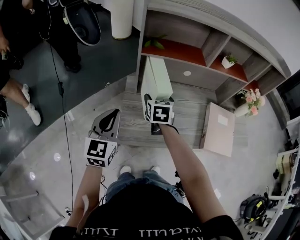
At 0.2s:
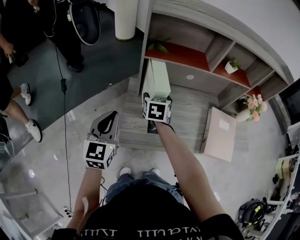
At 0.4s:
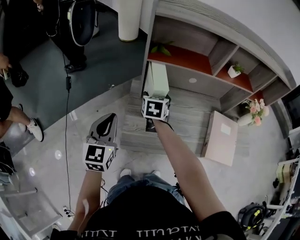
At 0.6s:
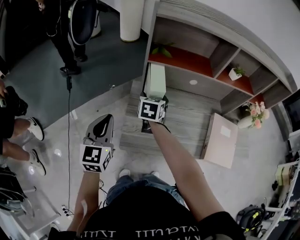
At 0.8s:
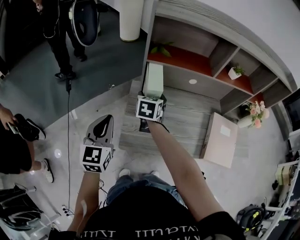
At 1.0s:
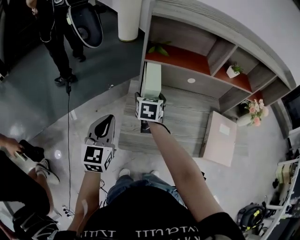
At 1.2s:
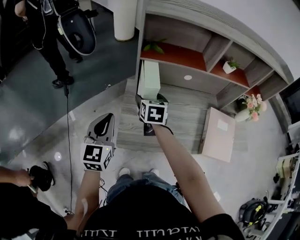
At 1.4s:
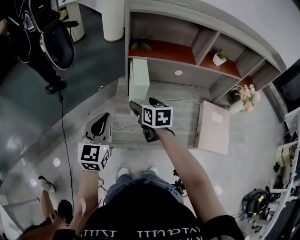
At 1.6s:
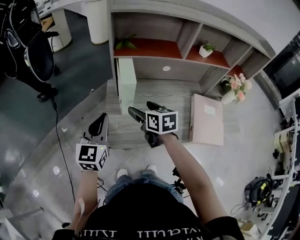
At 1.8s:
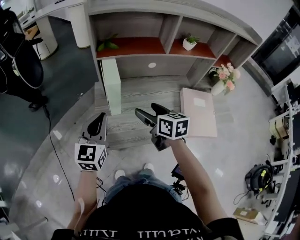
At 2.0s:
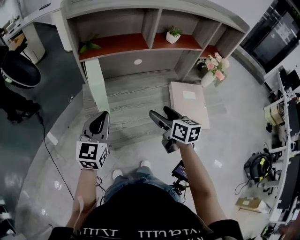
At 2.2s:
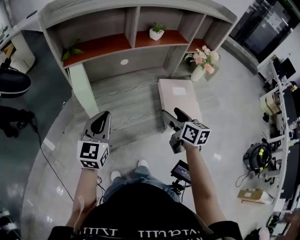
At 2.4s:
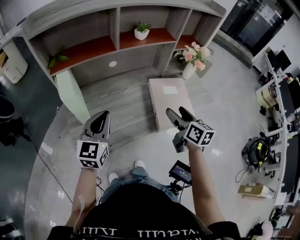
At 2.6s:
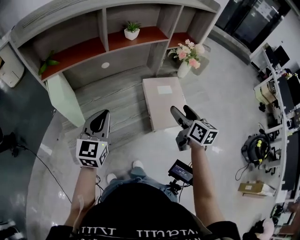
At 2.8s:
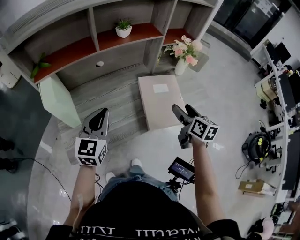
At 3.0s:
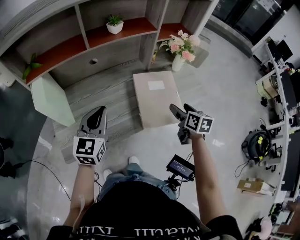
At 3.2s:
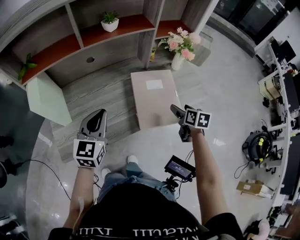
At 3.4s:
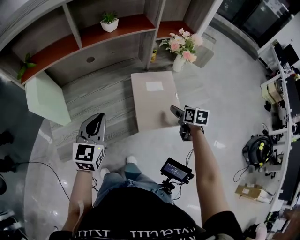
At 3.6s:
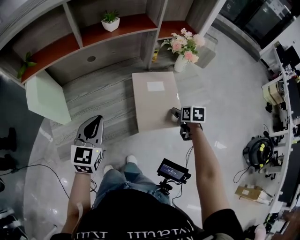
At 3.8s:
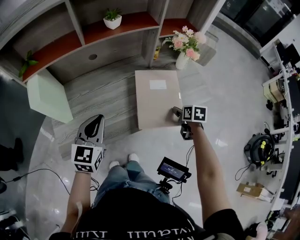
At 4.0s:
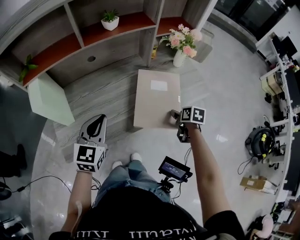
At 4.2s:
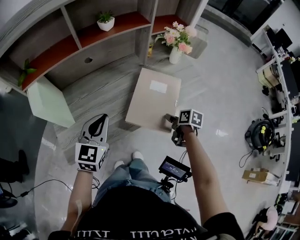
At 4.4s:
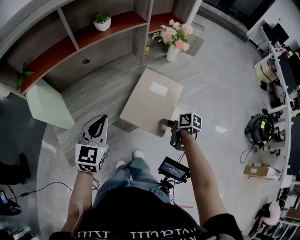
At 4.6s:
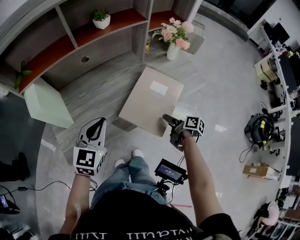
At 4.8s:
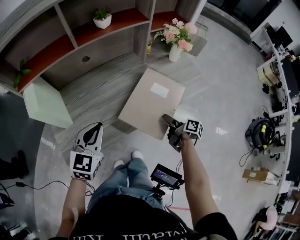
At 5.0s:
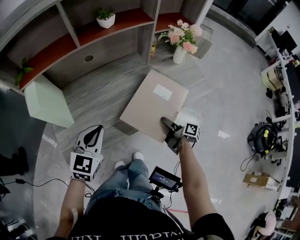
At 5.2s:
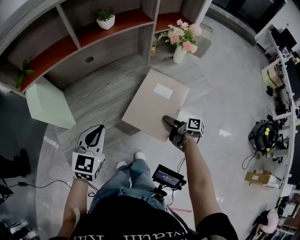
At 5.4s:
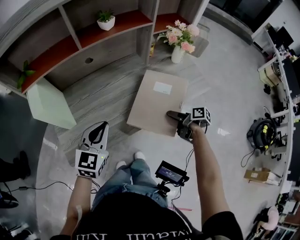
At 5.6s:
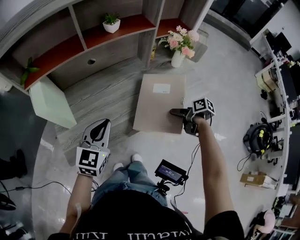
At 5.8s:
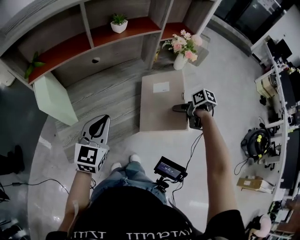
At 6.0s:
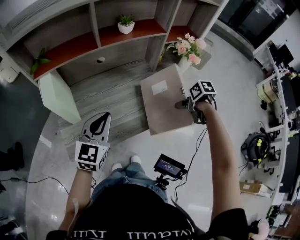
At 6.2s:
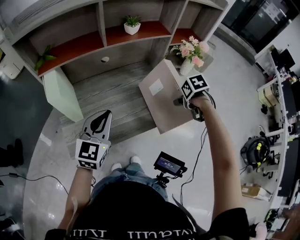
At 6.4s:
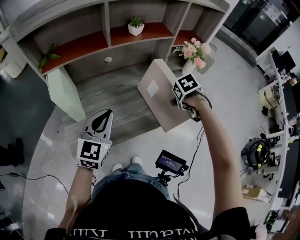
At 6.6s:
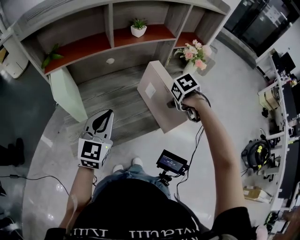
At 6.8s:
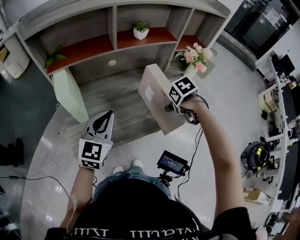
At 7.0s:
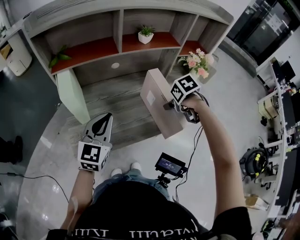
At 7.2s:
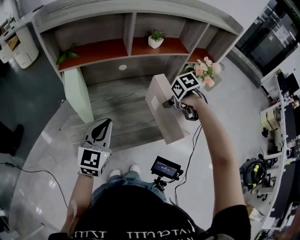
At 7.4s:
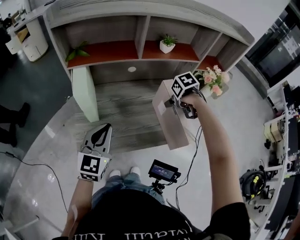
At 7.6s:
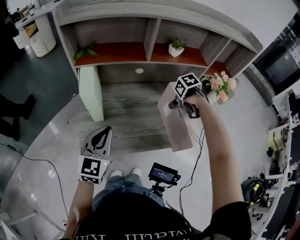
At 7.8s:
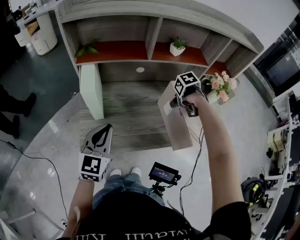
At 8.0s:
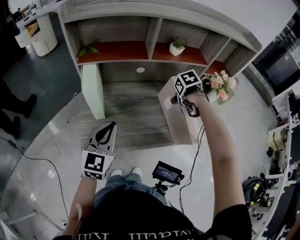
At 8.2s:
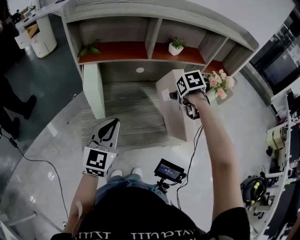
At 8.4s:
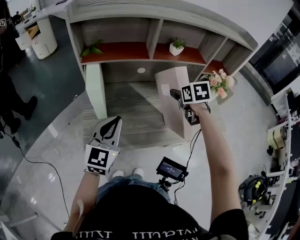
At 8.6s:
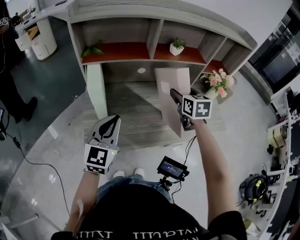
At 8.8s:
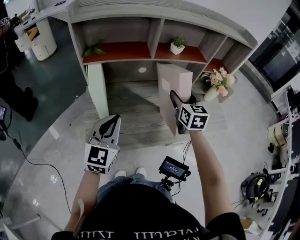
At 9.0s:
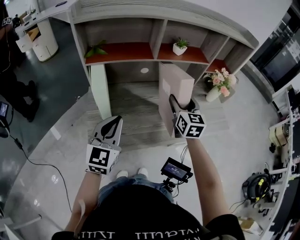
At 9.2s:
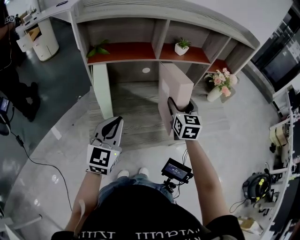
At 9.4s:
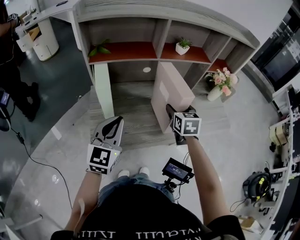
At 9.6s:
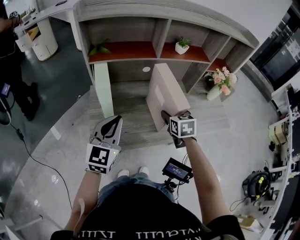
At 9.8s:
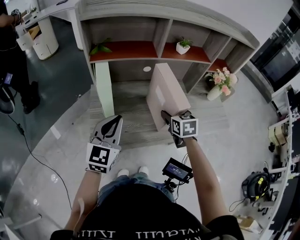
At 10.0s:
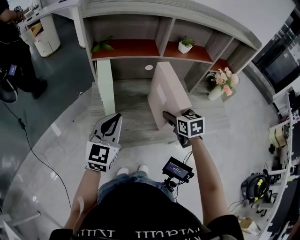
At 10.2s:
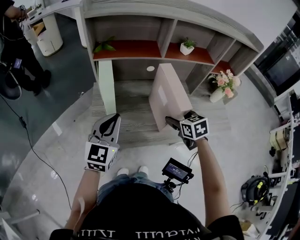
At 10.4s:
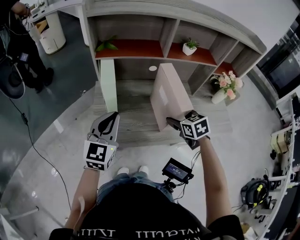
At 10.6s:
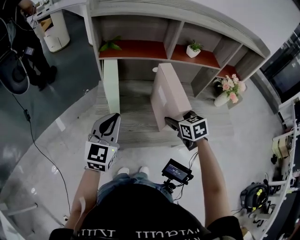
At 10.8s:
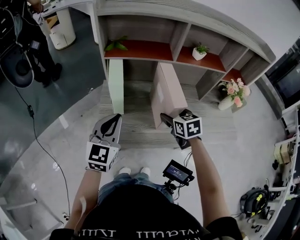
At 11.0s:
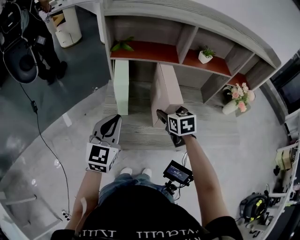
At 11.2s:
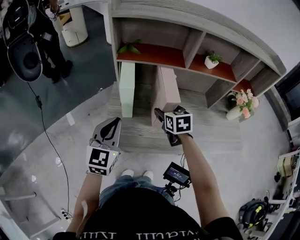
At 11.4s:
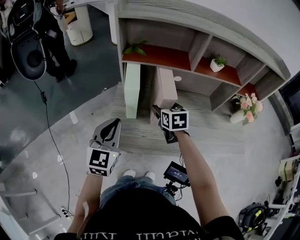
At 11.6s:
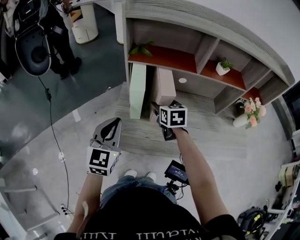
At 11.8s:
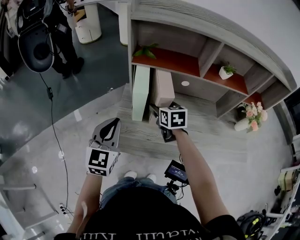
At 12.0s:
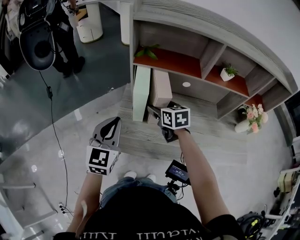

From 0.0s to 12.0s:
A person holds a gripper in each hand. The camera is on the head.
From 0.0s to 1.6s: The right gripper moves backward, approximately 5 cm, and rotates roughly 20 degrees.
From 1.6s to 3.0s: The left gripper moves about 30 cm, and rotates approximately 20 degrees; the right gripper changes place by approximately 50 cm, and changes its angle by some 40 degrees.
From 3.0s to 4.4s: The right gripper moves downward and backward, about 15 cm, rotates some 40 degrees, and closes its fingers.
From 4.4s to 6.0s: The right gripper travels upward and forward by approximately 15 cm, and rotates roughly 40 degrees.
From 6.0s to 7.6s: The right gripper shifts by some 20 cm, and swivels roughly 40 degrees; the left gripper moves about 10 cm.
From 7.6s to 9.0s: The right gripper moves upward, roughly 10 cm, and tilts its fingers about 70 degrees upward.
From 9.0s to 10.4s: The right gripper moves downward and backward, about 10 cm, and tips its fingers downward by approximately 30 degrees.
From 10.4s to 12.0s: The right gripper travels to the left and forward by some 25 cm, while the left gripper heads to the left, covering some 10 cm.

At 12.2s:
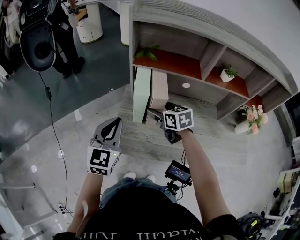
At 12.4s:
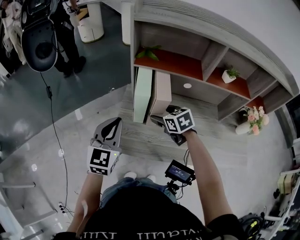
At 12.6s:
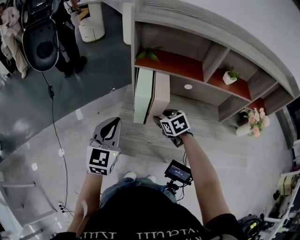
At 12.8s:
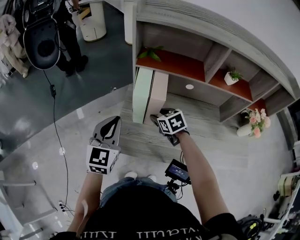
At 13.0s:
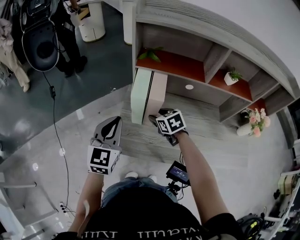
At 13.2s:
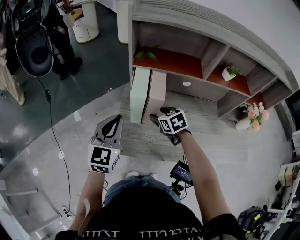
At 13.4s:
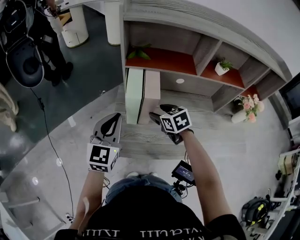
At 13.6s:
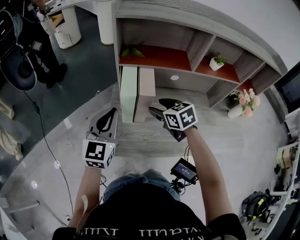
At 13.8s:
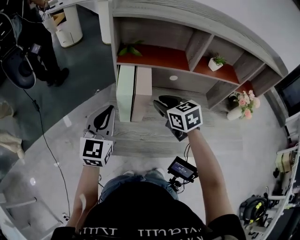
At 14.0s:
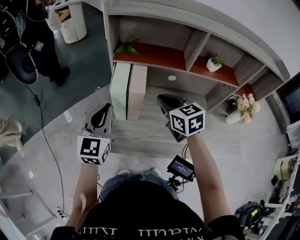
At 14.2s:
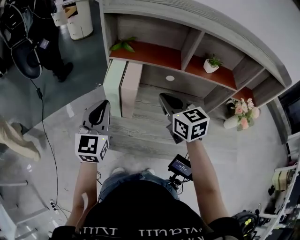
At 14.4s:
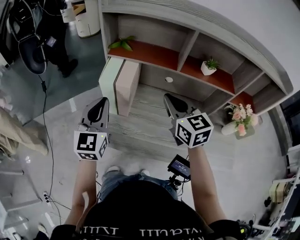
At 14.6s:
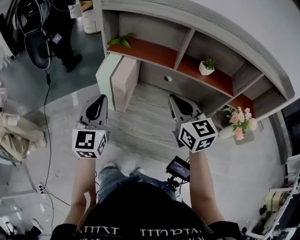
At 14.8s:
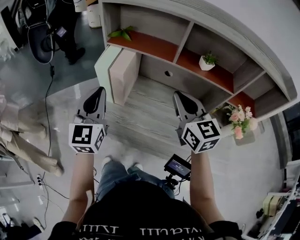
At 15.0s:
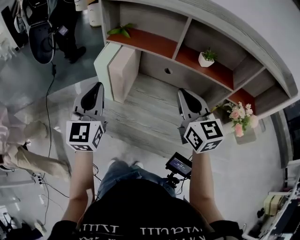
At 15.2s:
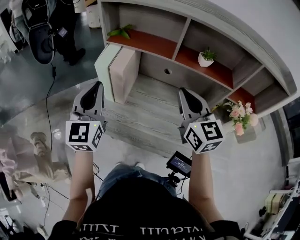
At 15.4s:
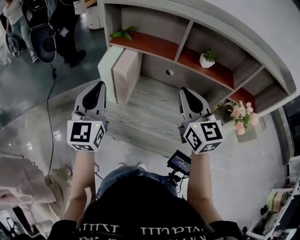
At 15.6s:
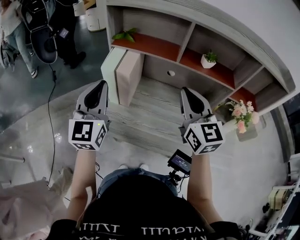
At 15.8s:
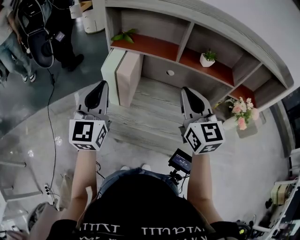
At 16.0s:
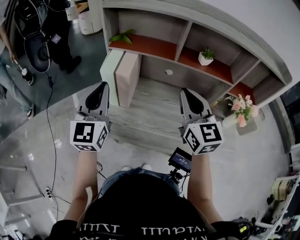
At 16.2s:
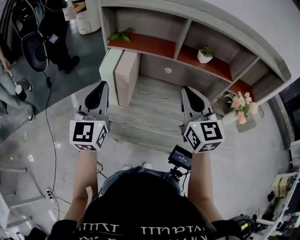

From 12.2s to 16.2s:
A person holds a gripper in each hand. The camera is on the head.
From 13.6s to 14.8s: The right gripper goes roughly 25 cm to the right, upward and backward, tilts its fingers some 30 degrees upward, and closes its fingers. The left gripper is displaced to the right and backward by approximately 10 cm, and rotates roughly 30 degrees.
From 14.8s to 16.2s: The grippers move only a little.

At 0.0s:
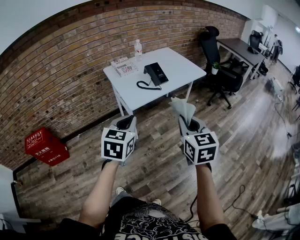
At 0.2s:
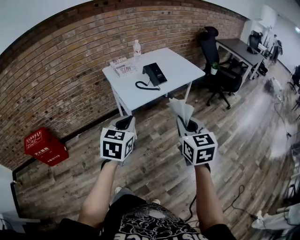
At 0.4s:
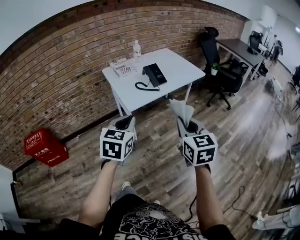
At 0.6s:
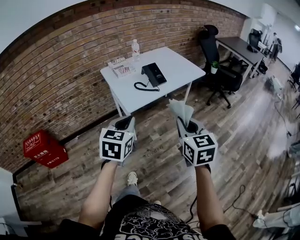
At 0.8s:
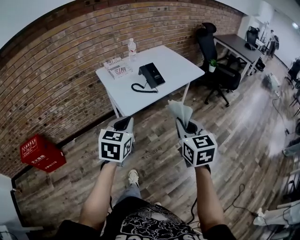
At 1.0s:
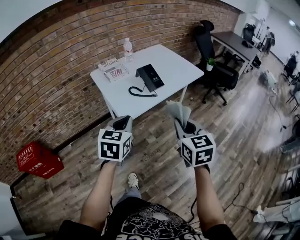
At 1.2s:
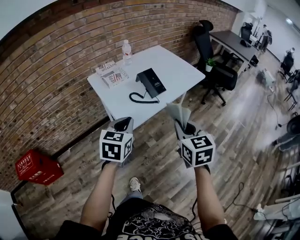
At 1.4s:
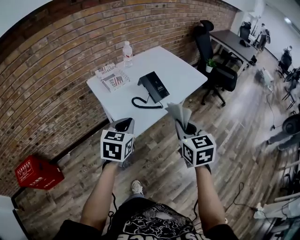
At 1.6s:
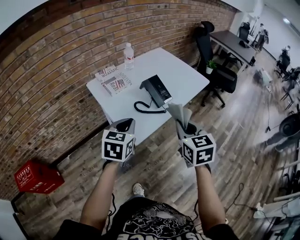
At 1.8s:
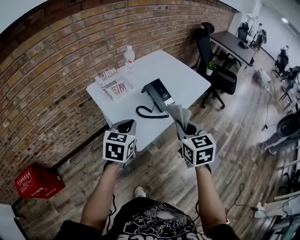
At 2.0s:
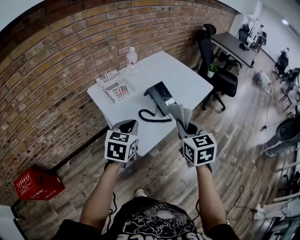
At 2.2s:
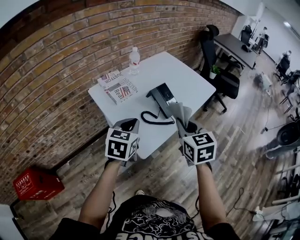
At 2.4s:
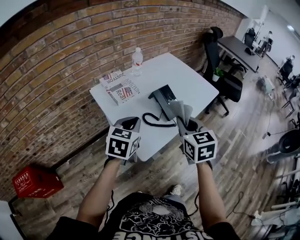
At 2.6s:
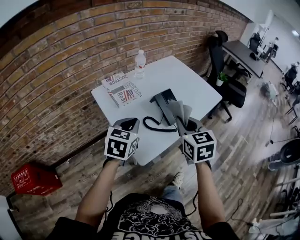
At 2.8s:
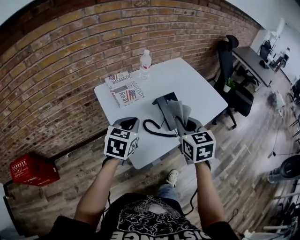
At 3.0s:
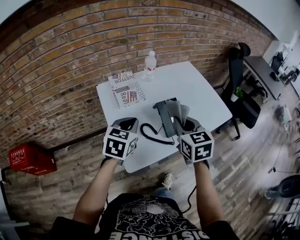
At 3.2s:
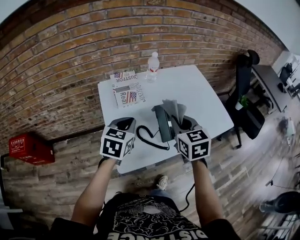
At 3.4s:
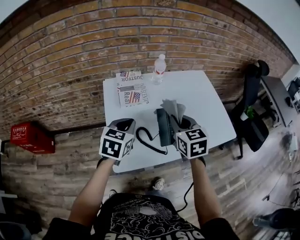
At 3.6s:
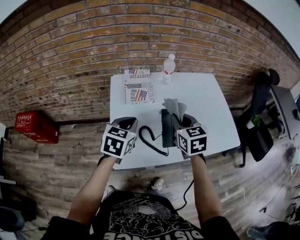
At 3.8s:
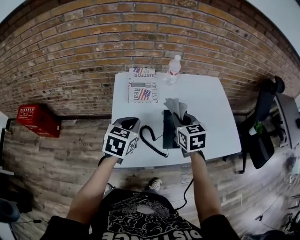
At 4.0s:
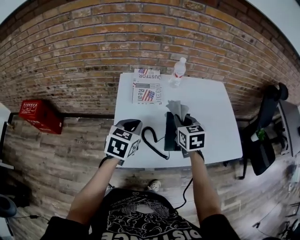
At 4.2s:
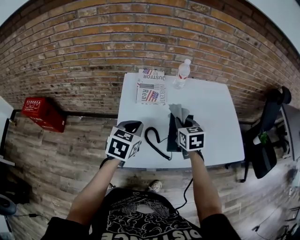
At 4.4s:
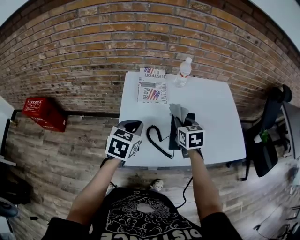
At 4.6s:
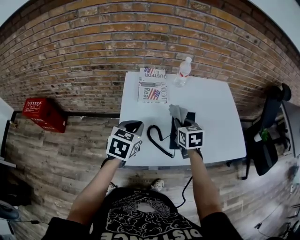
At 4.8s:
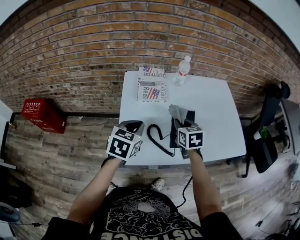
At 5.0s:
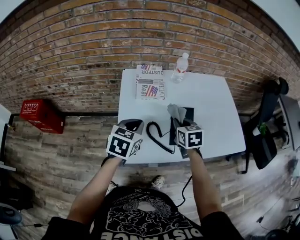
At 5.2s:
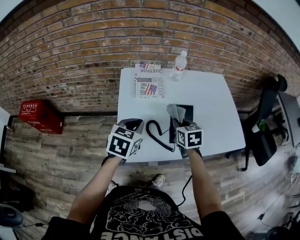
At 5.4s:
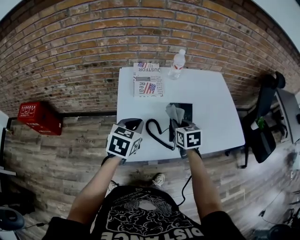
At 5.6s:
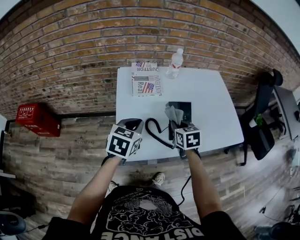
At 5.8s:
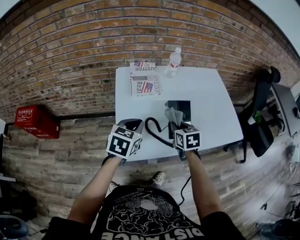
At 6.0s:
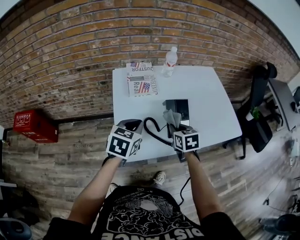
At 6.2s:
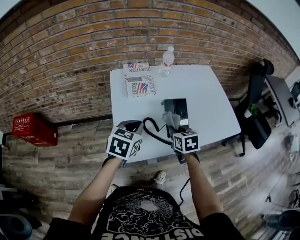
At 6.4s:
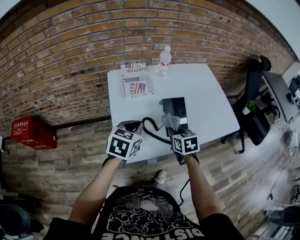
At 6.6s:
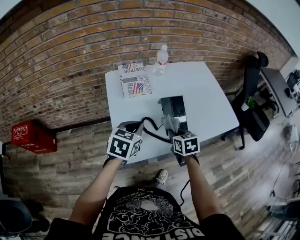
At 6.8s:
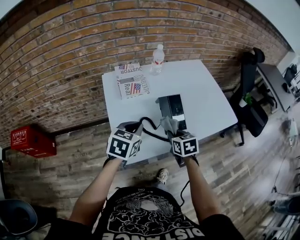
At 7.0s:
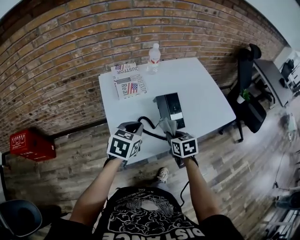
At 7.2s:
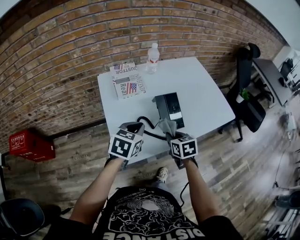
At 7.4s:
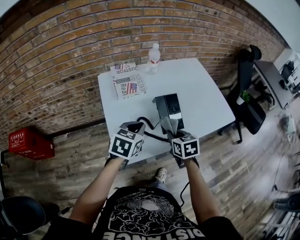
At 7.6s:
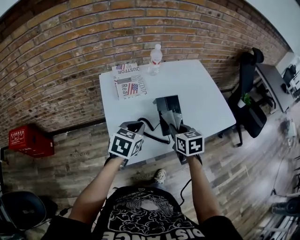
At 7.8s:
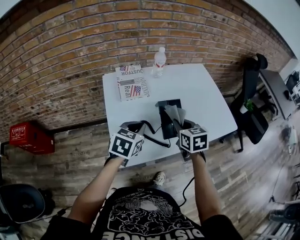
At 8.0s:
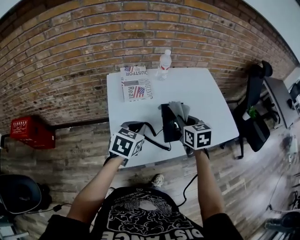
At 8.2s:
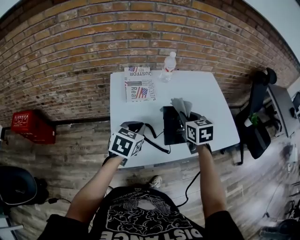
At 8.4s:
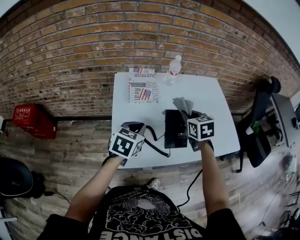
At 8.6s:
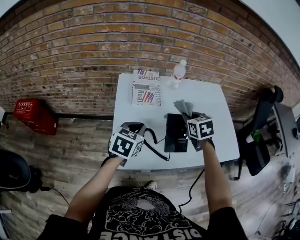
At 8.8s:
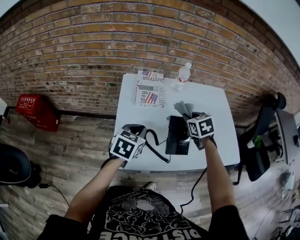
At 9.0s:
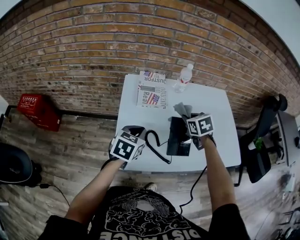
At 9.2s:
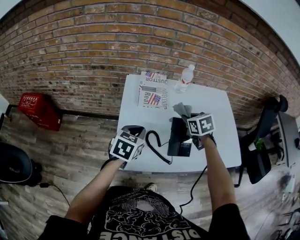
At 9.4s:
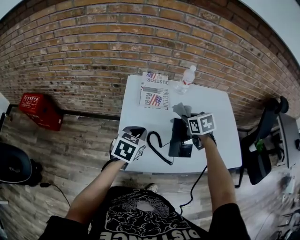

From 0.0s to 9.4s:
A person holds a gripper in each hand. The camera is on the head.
From 0.0s to 1.6s: Both grippers travel together forward, some 25 cm.
From 1.6s to 3.2s: Both grippers travel together forward, some 20 cm. The right gripper swivels approximately 20 degrees.
From 3.2s to 4.8s: The right gripper goes about 15 cm downward and forward.
From 4.8s to 6.2s: The right gripper heads backward, covering roughly 5 cm.
From 6.2s to 7.8s: The right gripper moves upward, approximately 5 cm.
From 7.8s to 9.4s: The right gripper shifts roughly 15 cm forward, and swivels roughly 30 degrees.
